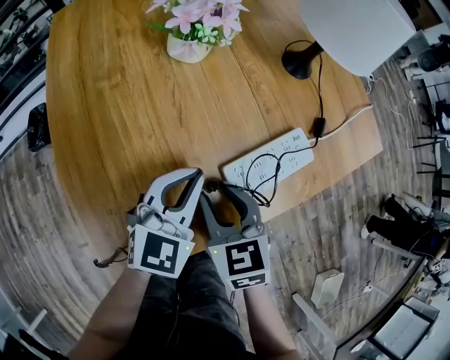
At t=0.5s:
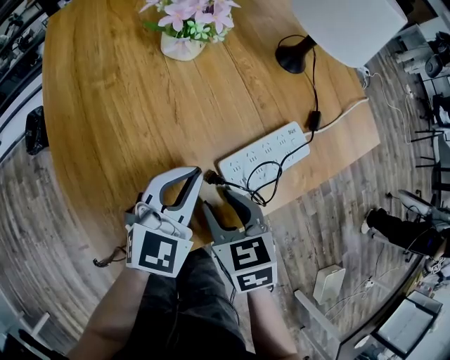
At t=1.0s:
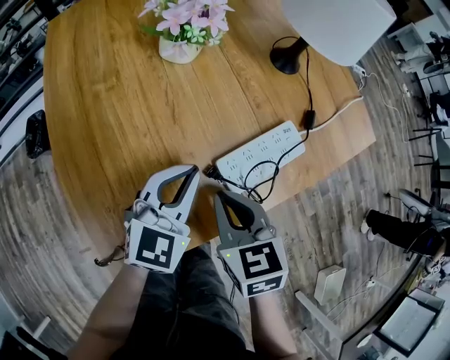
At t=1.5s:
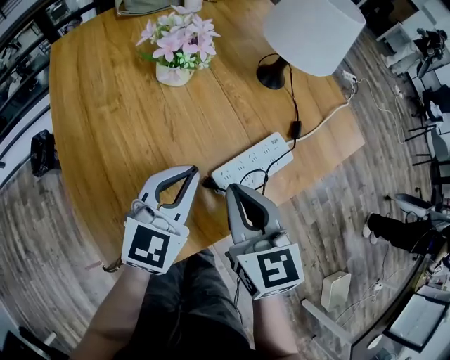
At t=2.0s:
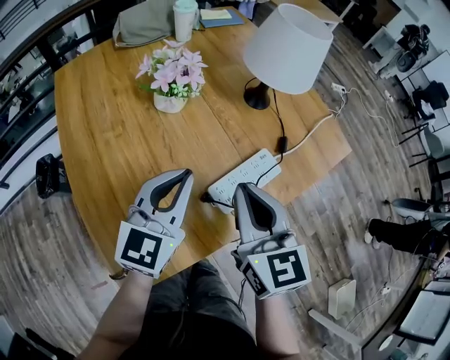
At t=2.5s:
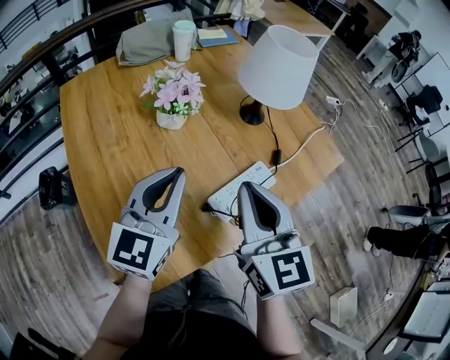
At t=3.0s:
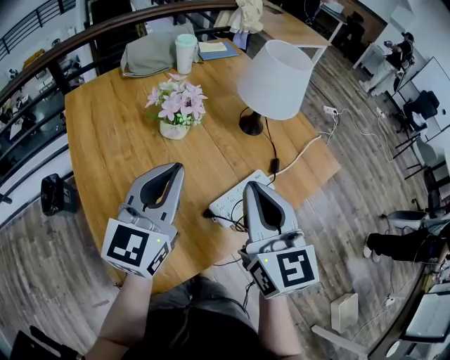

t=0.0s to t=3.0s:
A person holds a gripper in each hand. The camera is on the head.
t=0.0s to t=1.5s: The right gripper is displaced upward and to the right by roughly 10 cm, and closes. Meanwhile the left gripper is displaced upward by some 5 cm.
t=1.5s to t=3.0s: The grippers both shift upward by about 15 cm.

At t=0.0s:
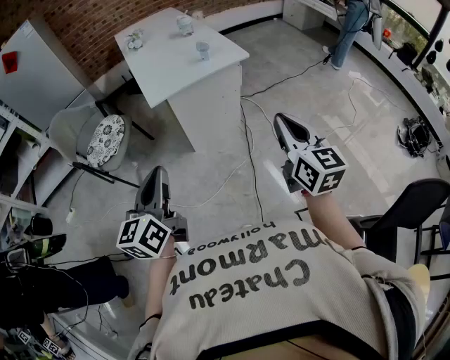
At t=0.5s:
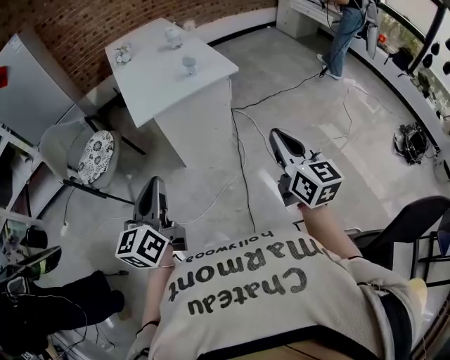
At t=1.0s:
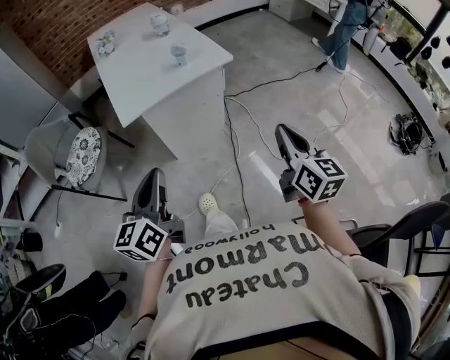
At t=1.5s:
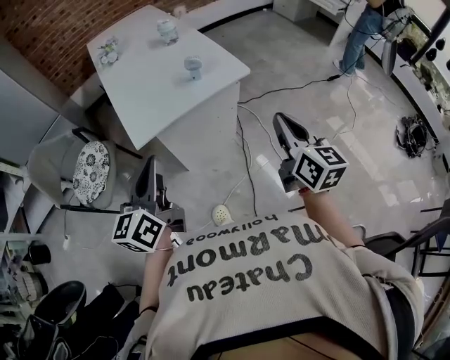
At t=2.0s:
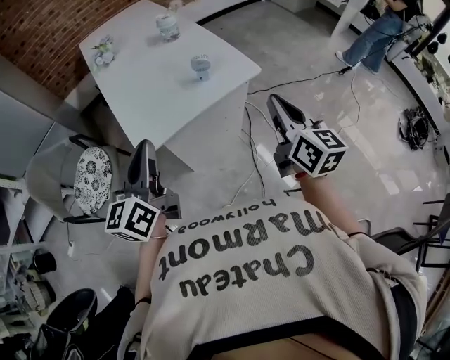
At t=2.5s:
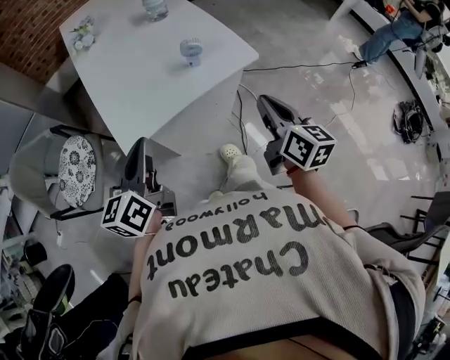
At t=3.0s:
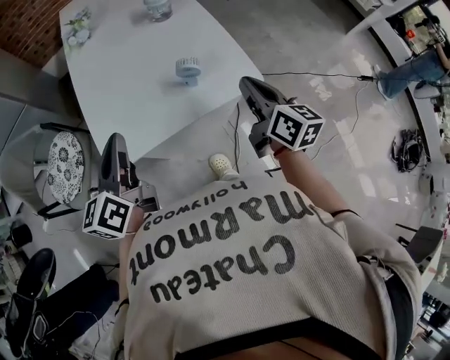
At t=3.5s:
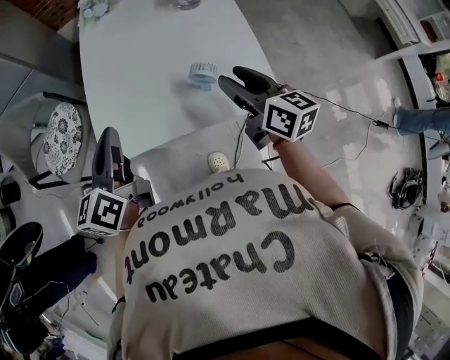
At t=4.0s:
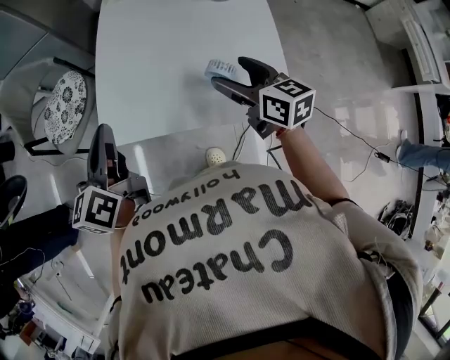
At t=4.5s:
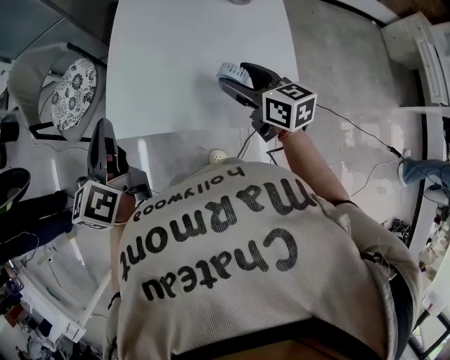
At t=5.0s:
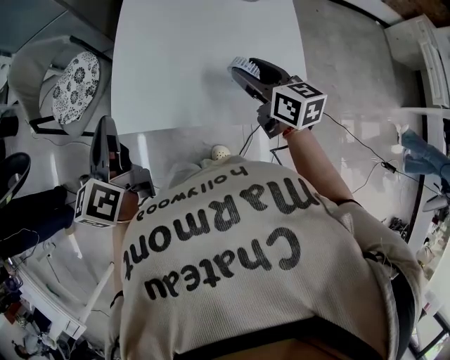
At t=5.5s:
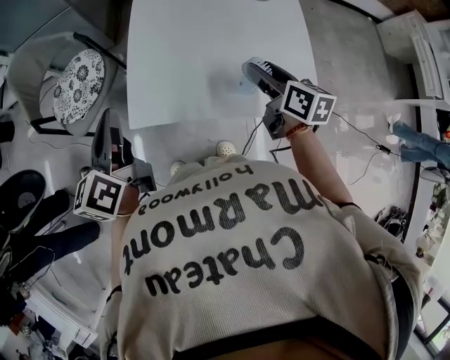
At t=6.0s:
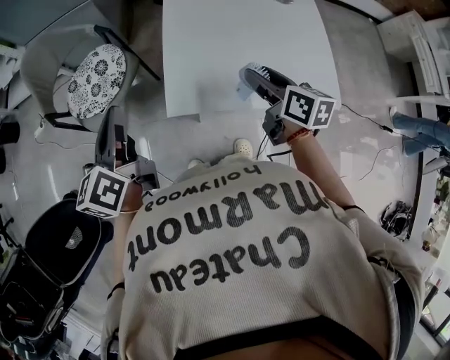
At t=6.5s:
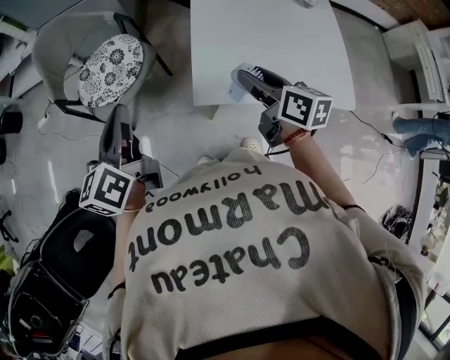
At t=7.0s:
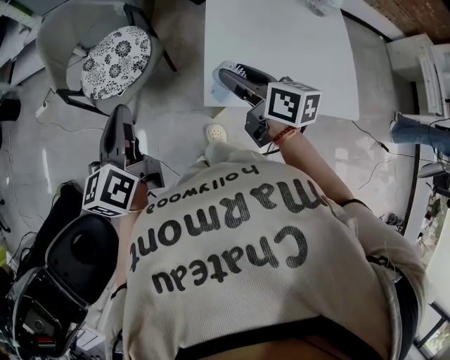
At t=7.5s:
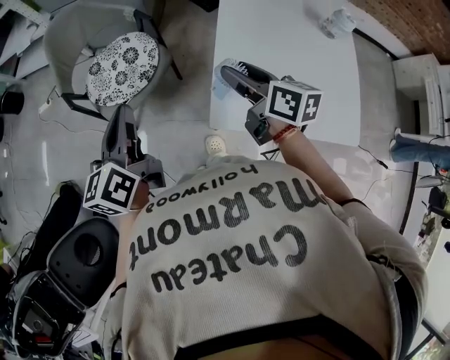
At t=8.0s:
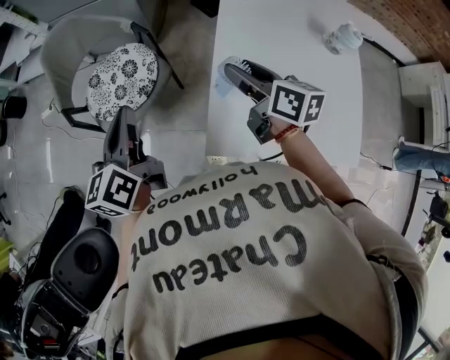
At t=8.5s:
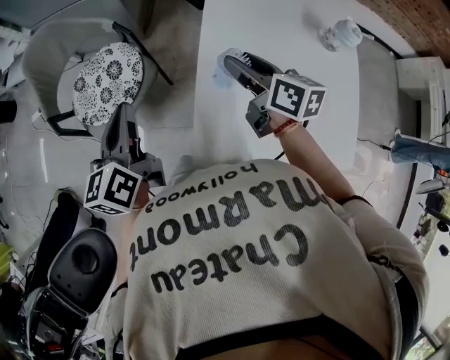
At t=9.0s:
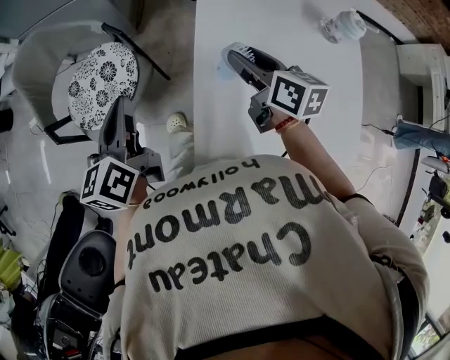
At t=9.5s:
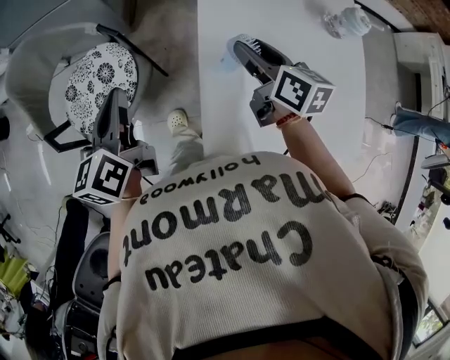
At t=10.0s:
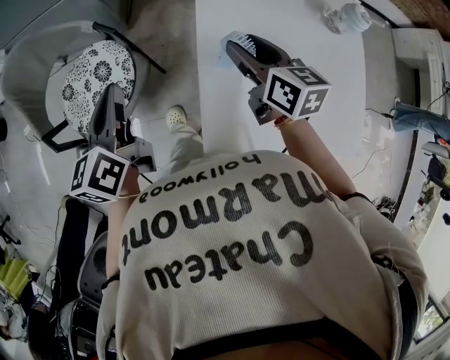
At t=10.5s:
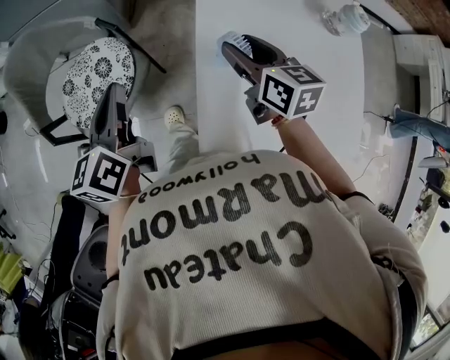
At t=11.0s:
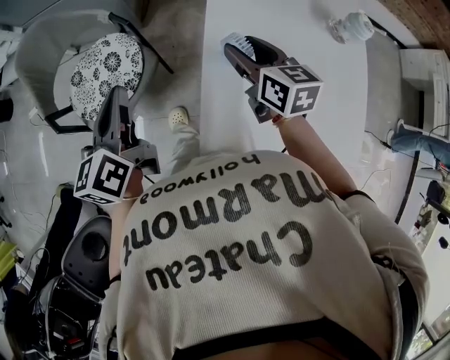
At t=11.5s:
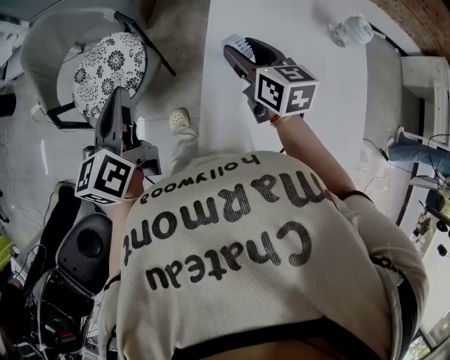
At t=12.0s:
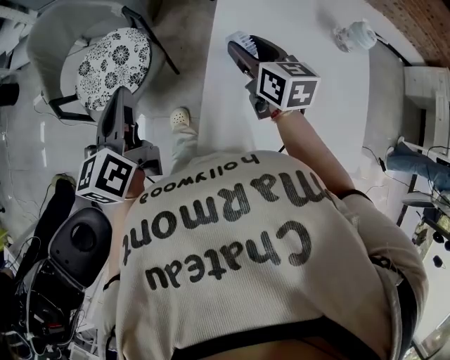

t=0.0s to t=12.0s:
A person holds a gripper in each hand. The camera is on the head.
t=0.0s to t=2.0s: Both grippers move forward, about 40 cm.
t=2.0s to t=4.0s: The right gripper moves approximately 40 cm, rotates some 50 degrees, and opens up, while the left gripper shifts by roughly 20 cm, and rotates approximately 40 degrees.
t=4.0s to t=6.0s: The two grippers go approximately 20 cm to the left. The right gripper closes.
t=6.0s to t=8.0s: The left gripper travels forward and to the left by roughly 15 cm. Meanwhile the right gripper shifts roughly 25 cm forward and to the left.
t=8.0s to t=10.0s: The right gripper moves forward and to the right, about 10 cm. Meanwhile the left gripper heads forward and downward, covering some 15 cm.
t=10.0s to t=12.0s: The left gripper goes approximately 10 cm backward.

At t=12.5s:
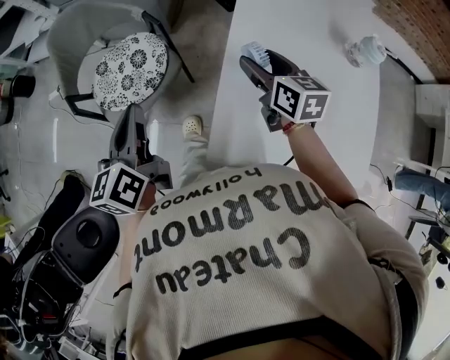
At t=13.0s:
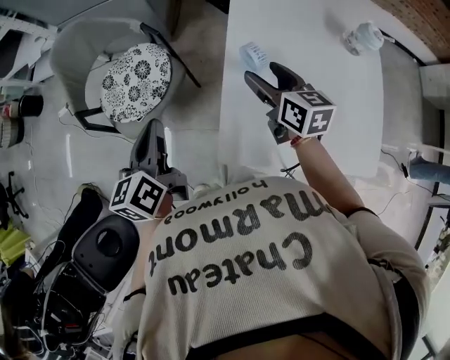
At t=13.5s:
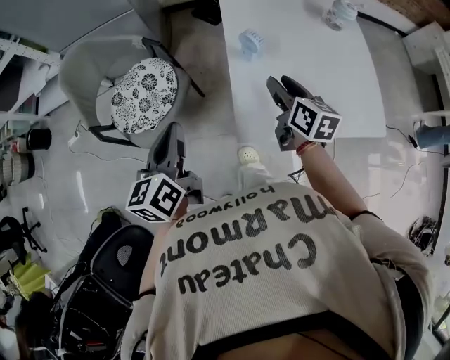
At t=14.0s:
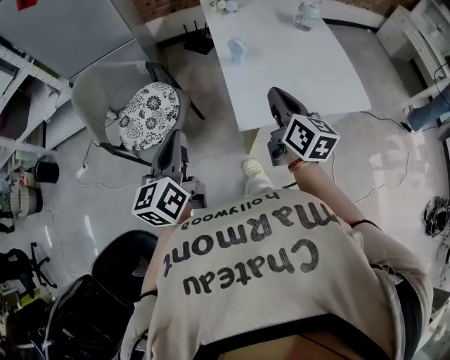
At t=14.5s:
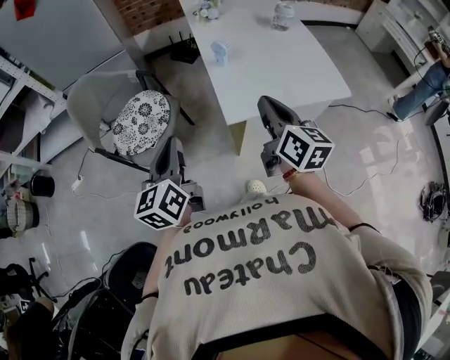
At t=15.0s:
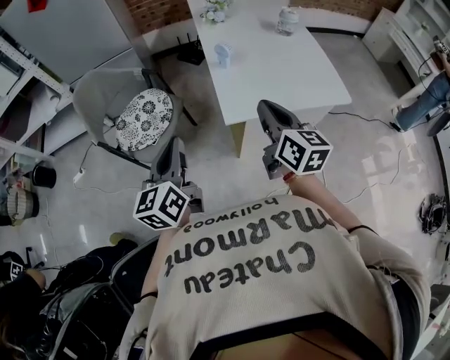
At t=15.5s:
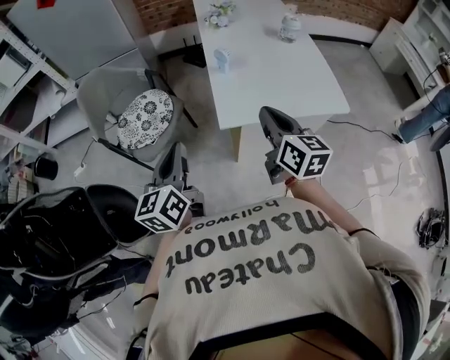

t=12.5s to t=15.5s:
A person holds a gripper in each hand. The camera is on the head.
t=12.5s to t=14.0s: The left gripper shifts by approximately 20 cm, and swivels some 30 degrees, while the right gripper moves some 30 cm, rotates approximately 40 degrees, and closes its fingers.
t=14.0s to t=15.5s: The left gripper goes roughly 10 cm backward and to the right. The right gripper shifts roughly 10 cm backward.

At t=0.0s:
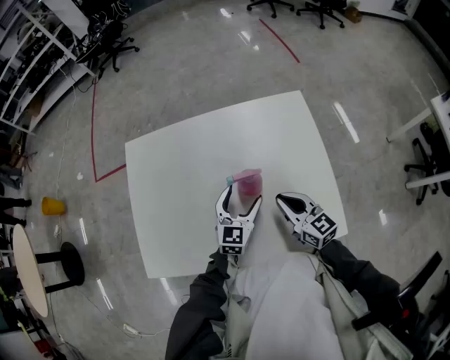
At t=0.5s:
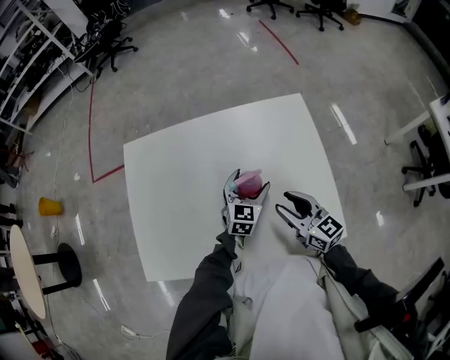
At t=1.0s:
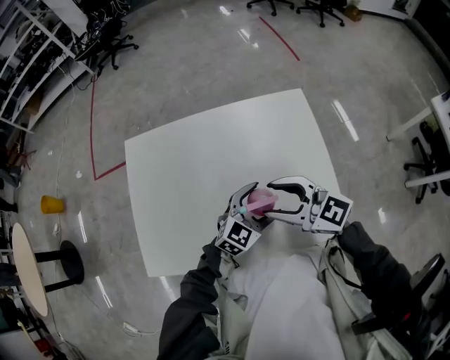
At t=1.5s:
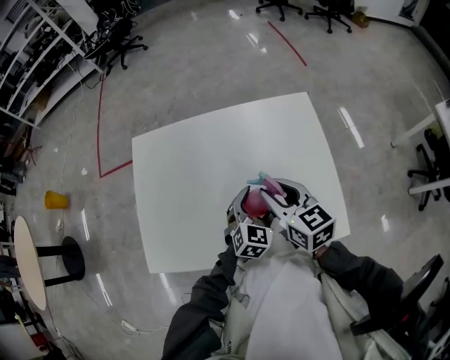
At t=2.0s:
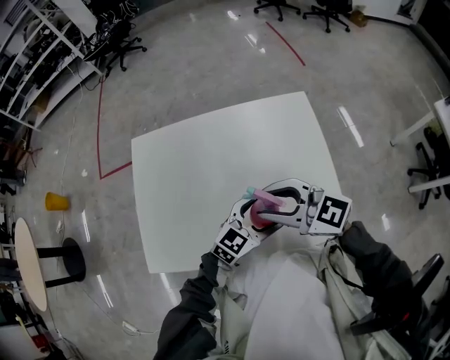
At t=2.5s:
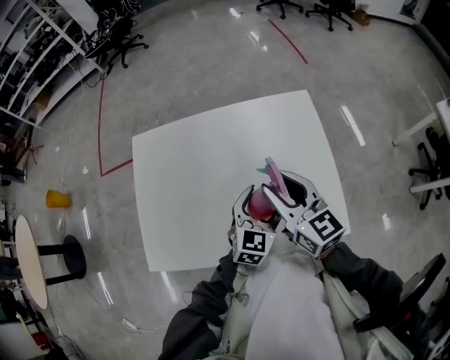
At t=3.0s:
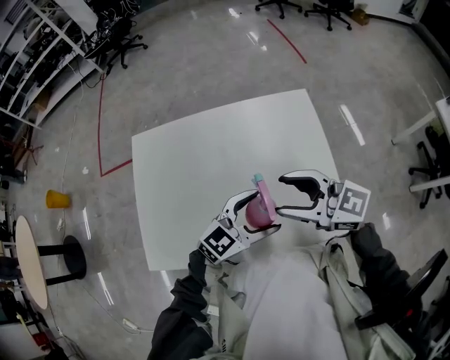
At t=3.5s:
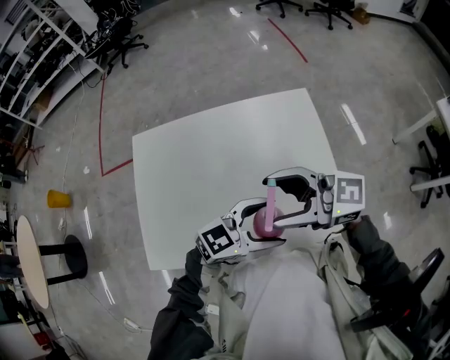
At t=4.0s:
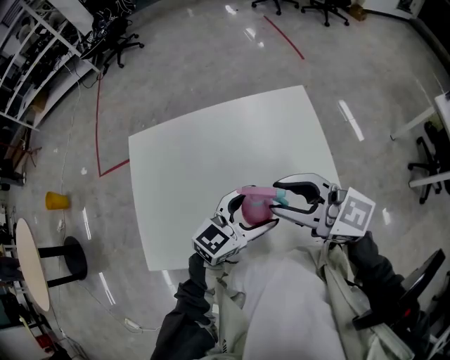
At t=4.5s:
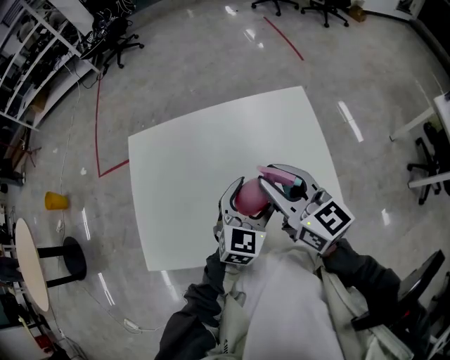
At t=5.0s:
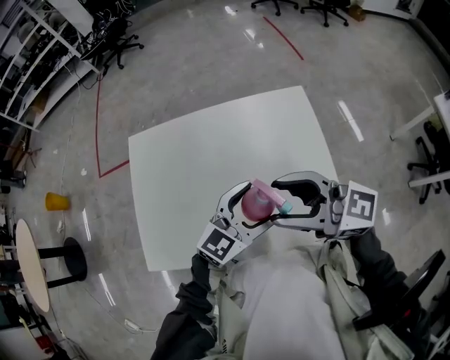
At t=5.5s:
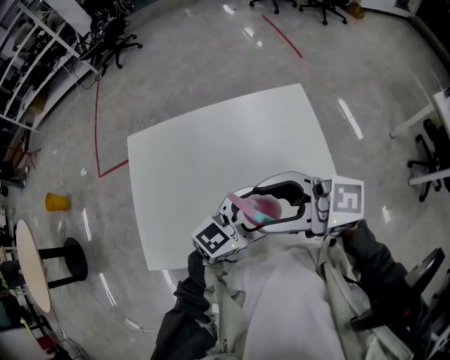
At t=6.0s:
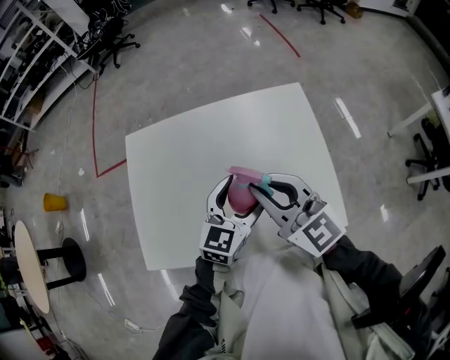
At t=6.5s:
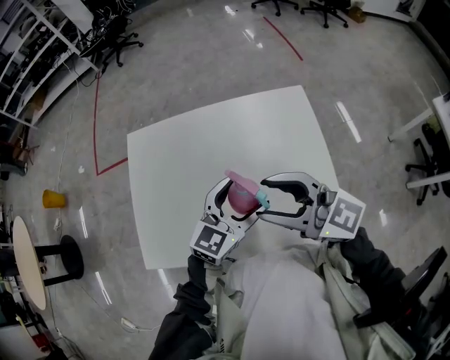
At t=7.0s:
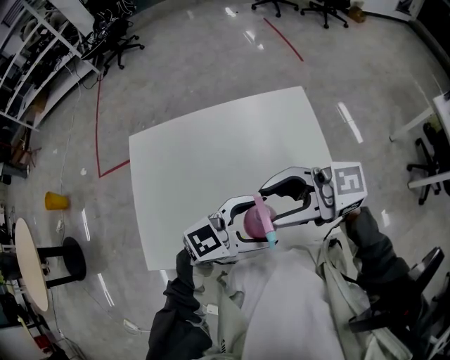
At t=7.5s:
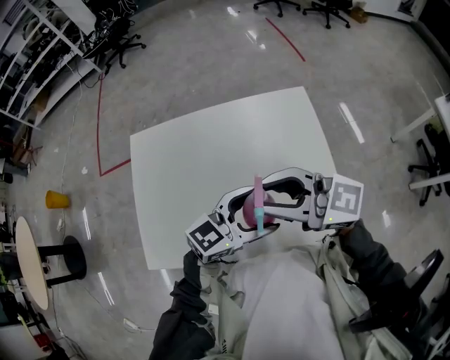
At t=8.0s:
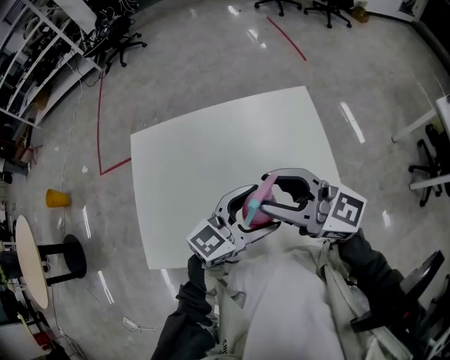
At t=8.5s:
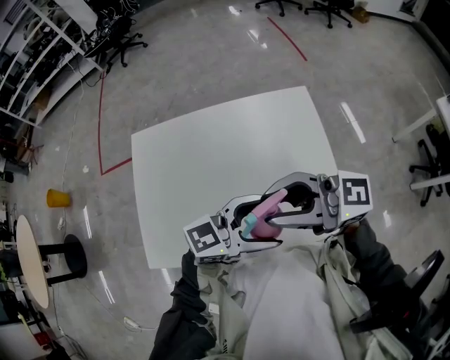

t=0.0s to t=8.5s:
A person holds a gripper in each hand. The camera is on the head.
t=0.0s to t=2.0s: The right gripper shifts about 15 cm upward, turns by about 40 degrees, and opens up. Meanwhile the left gripper ends up about 10 cm from where it was, and swivels about 30 degrees.
t=2.0s to t=4.0s: Both grippers travel together upward, roughly 5 cm. The right gripper opens and closes again.
t=6.5s to t=8.5s: The left gripper moves roughly 10 cm, and turns by about 40 degrees, while the right gripper swivels about 20 degrees.
